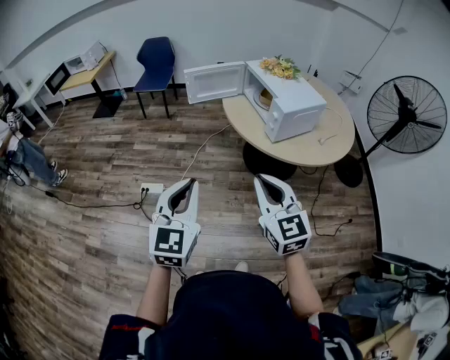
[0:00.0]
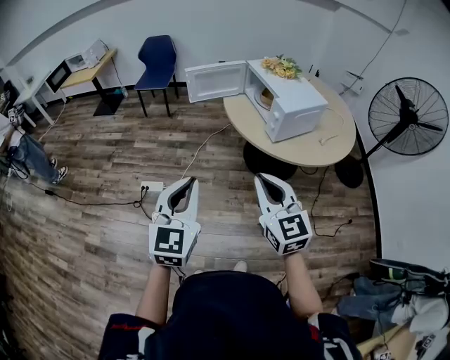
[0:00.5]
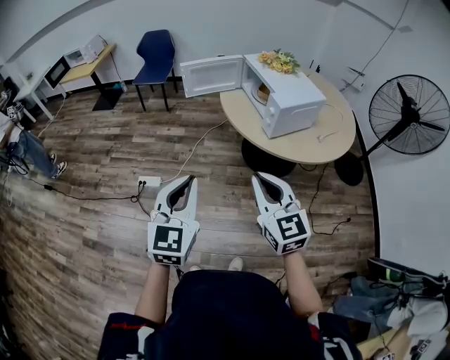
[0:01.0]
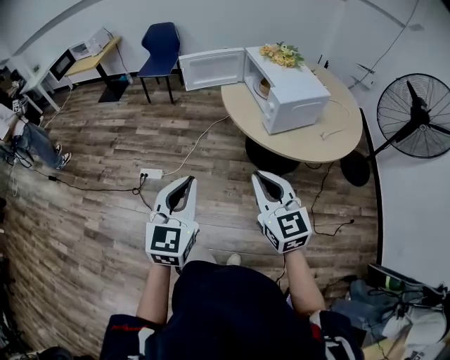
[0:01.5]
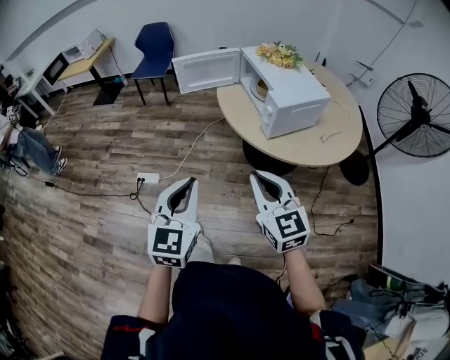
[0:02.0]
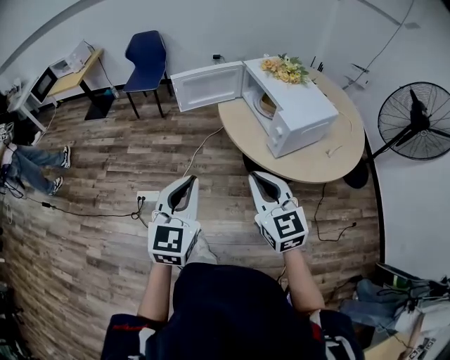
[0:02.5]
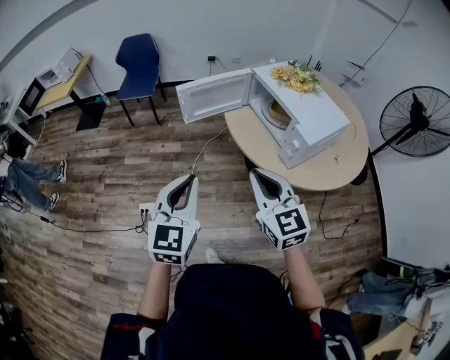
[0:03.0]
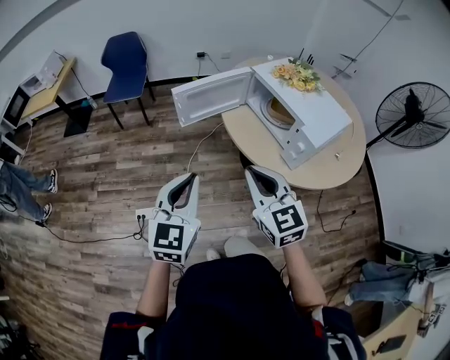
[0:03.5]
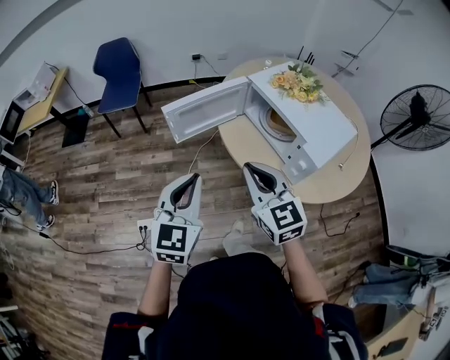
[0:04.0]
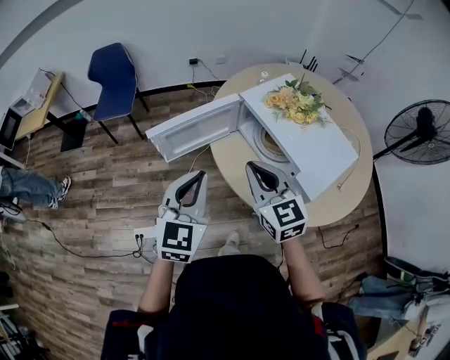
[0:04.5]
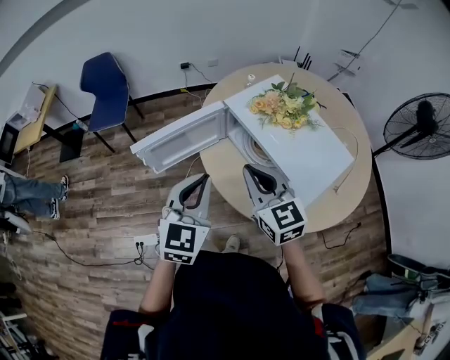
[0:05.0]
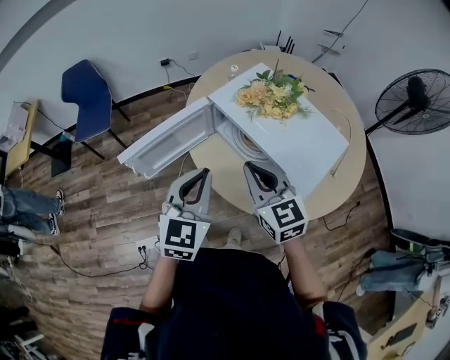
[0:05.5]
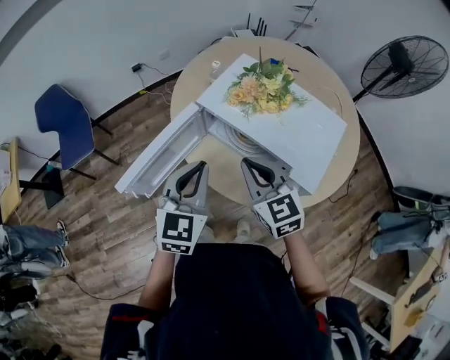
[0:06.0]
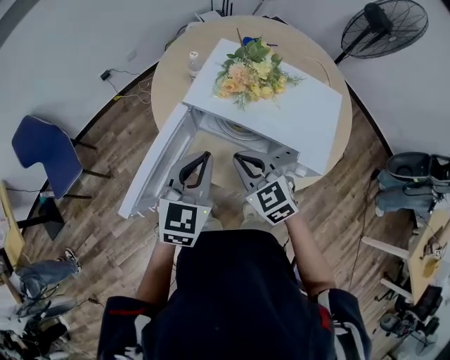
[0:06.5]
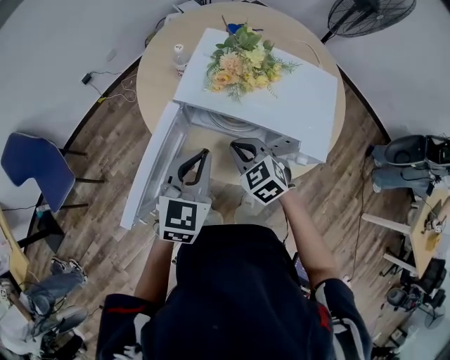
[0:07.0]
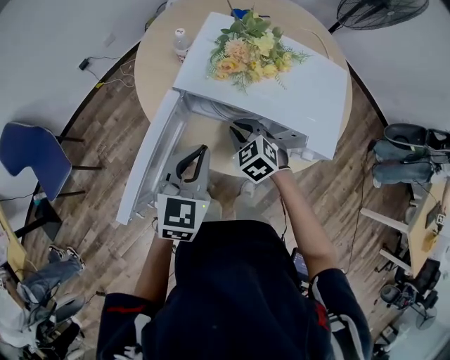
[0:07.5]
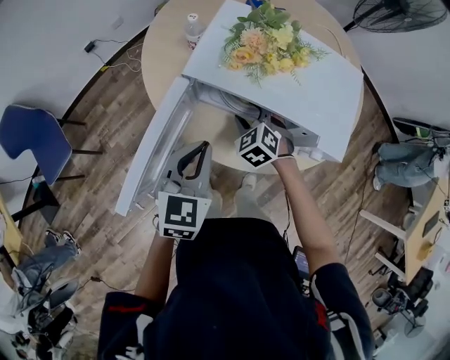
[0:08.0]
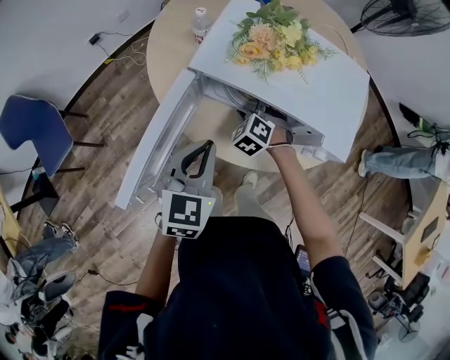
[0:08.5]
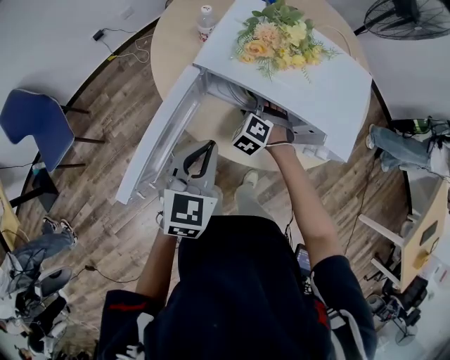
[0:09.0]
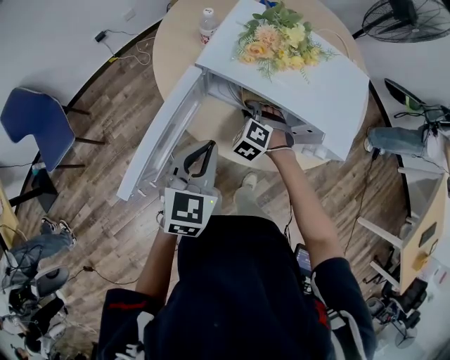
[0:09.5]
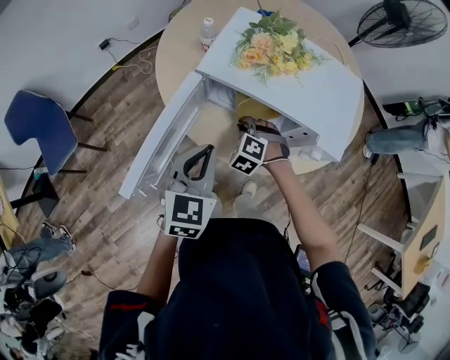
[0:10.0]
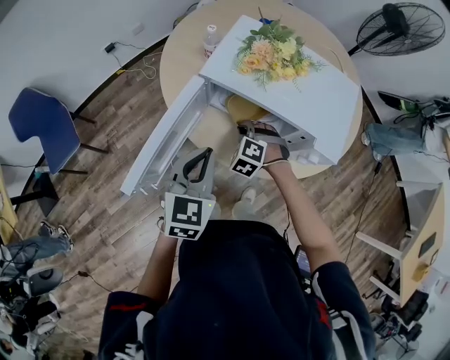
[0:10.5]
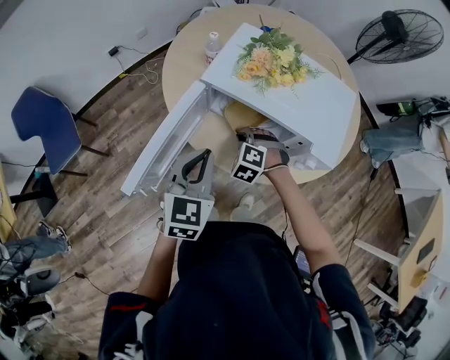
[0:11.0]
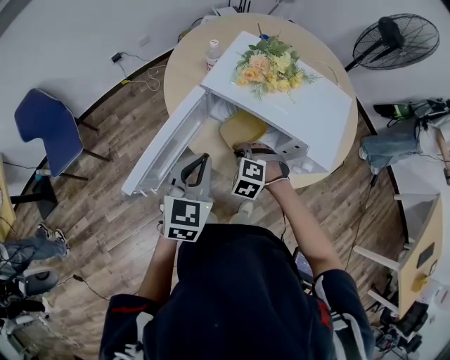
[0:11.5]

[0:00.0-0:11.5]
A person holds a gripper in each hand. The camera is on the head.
0:00.0 to 0:02.0: Both grippers travel together to the right and forward, some 10 cm.
0:02.0 to 0:04.0: The right gripper heads forward and to the left, covering approximately 35 cm, while the left gripper moves forward, about 35 cm.
0:04.0 to 0:06.0: The two grippers go about 25 cm forward and to the right. The right gripper swivels roughly 20 degrees, while the left gripper rotates approximately 20 degrees.
0:06.0 to 0:07.5: The right gripper travels downward and forward by approximately 20 cm, and changes its angle by roughly 30 degrees. The left gripper is displaced downward and forward by about 10 cm, and rotates approximately 20 degrees.
0:07.5 to 0:09.5: The right gripper moves downward, approximately 5 cm, changes its angle by roughly 30 degrees, and opens and closes again.
0:09.5 to 0:11.5: The right gripper goes some 10 cm backward.

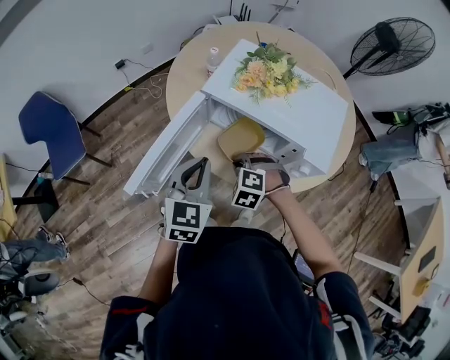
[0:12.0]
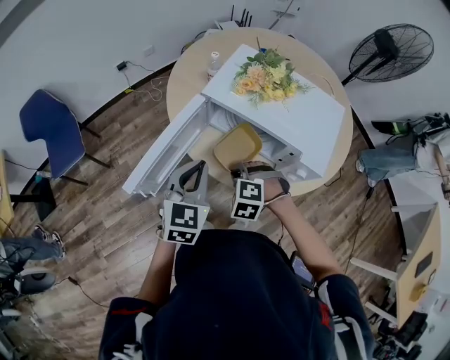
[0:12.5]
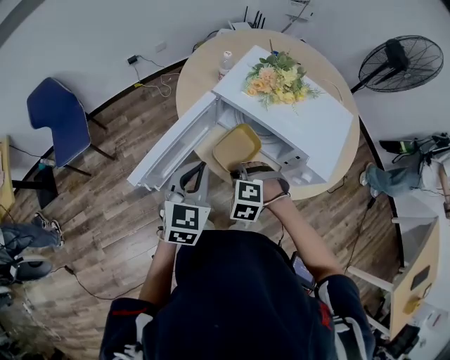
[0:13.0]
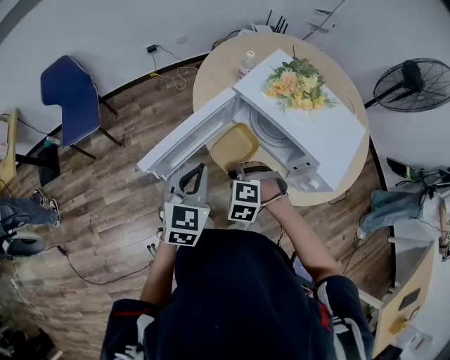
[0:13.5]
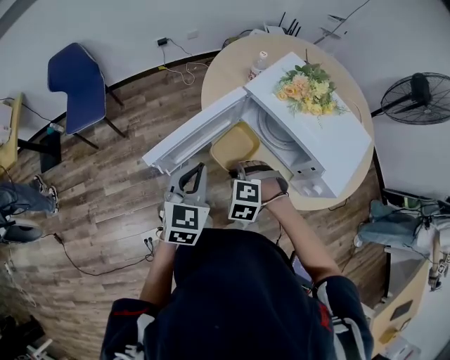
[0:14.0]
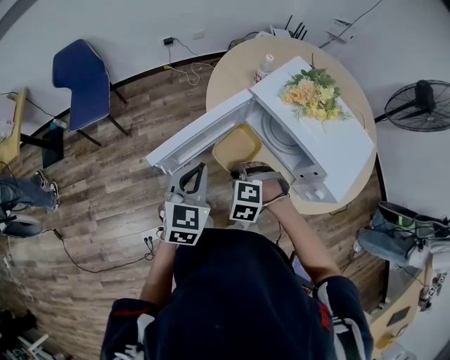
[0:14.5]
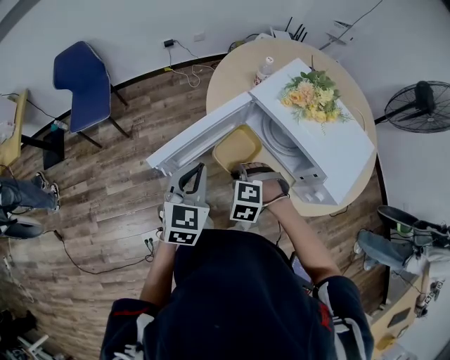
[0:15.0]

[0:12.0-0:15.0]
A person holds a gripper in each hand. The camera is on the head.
0:12.0 to 0:13.5: Both grippers travel together to the left, about 5 cm.
0:13.5 to 0:15.0: The grippers stay close to where they were, moving slightly.

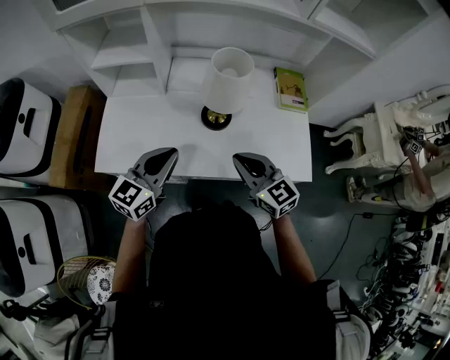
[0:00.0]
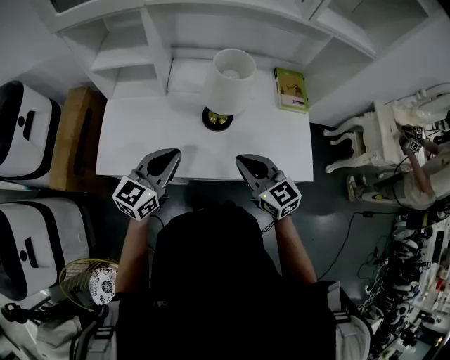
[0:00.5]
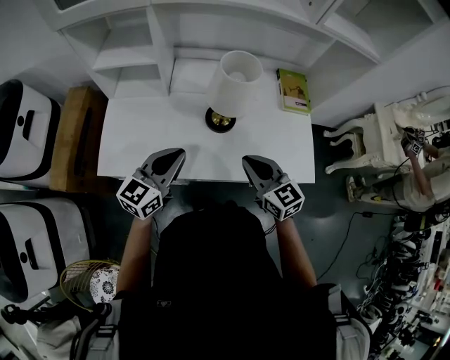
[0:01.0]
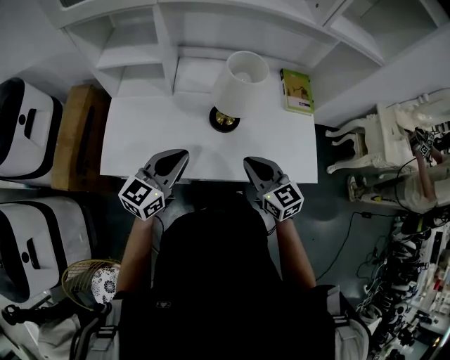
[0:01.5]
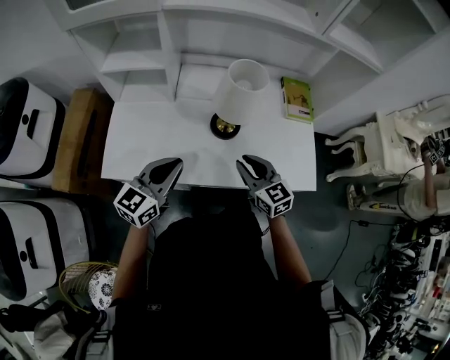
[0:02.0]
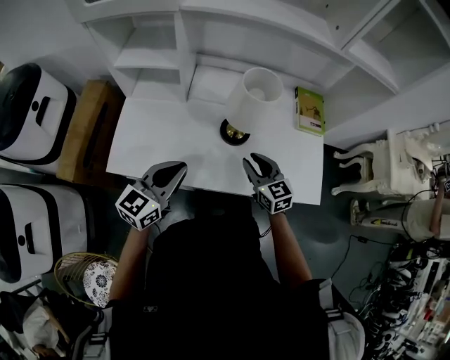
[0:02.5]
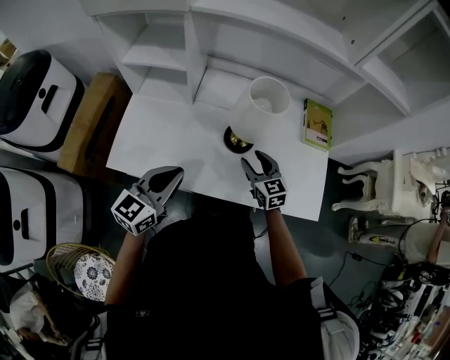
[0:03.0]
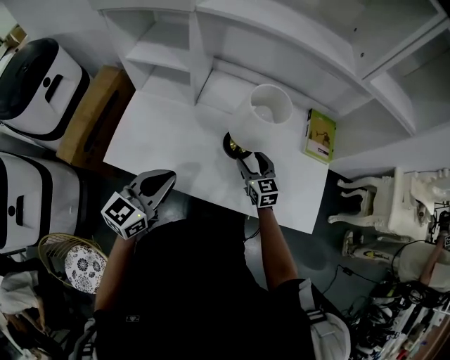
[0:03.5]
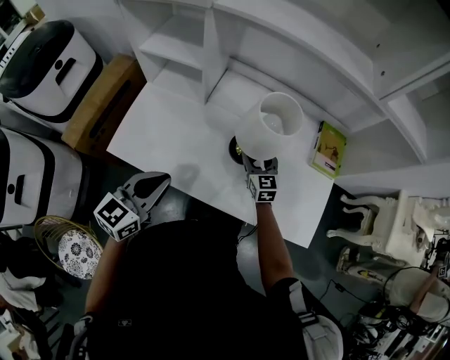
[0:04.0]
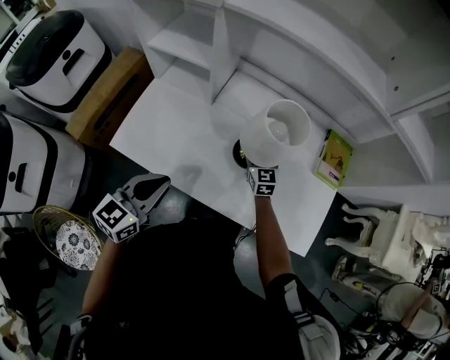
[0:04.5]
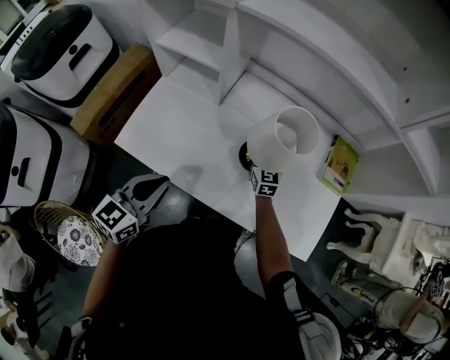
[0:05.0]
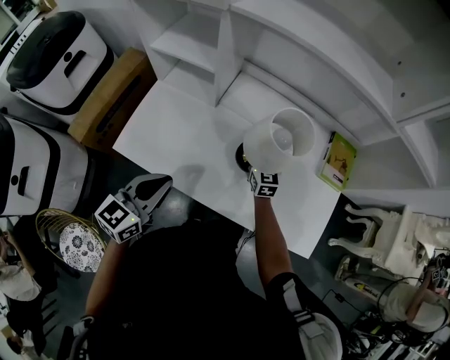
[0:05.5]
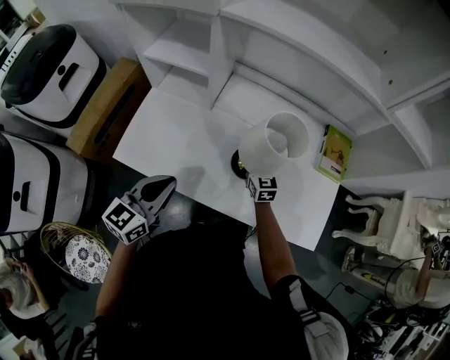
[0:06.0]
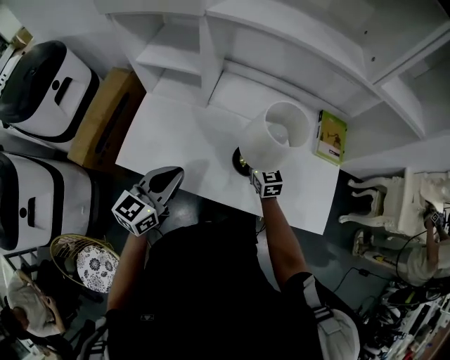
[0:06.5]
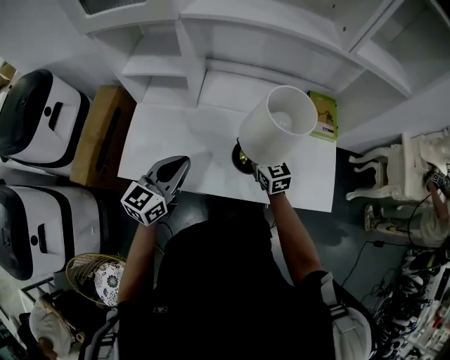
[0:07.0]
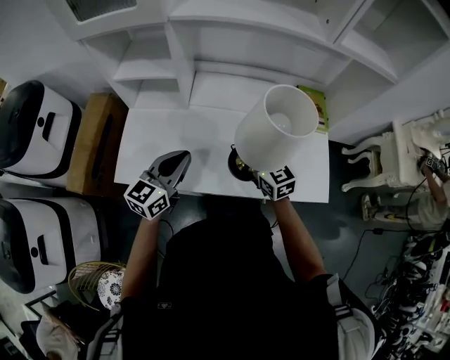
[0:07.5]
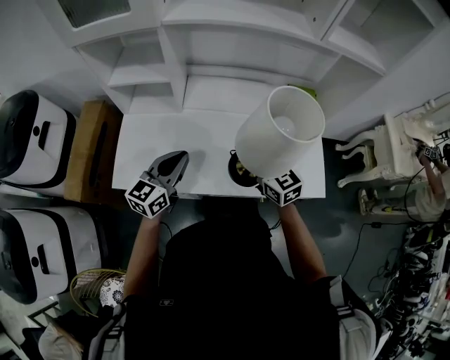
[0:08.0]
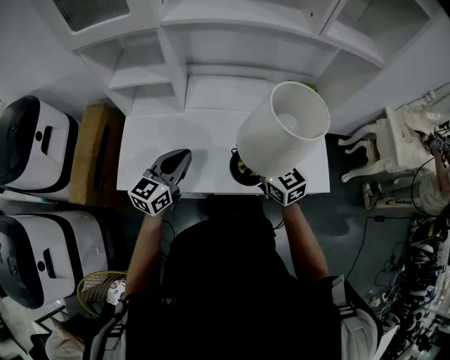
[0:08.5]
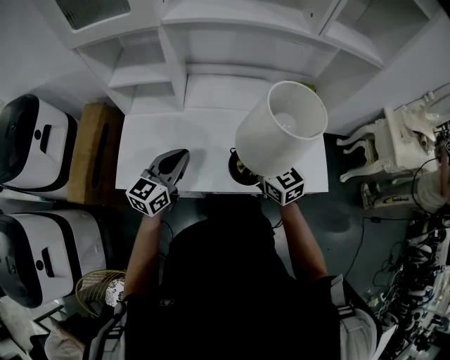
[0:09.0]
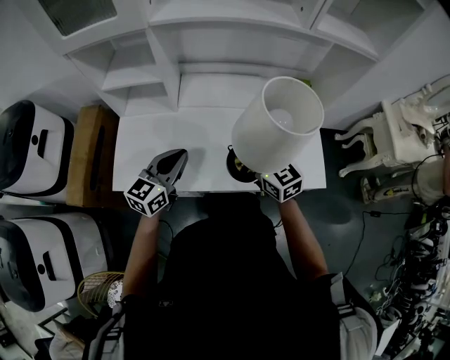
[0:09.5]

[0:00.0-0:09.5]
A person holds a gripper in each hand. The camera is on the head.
0:00.0 to 0:02.0: The right gripper shifts by some 5 cm.
0:02.0 to 0:04.0: The right gripper heads forward and downward, covering approximately 20 cm, and opens.
0:04.0 to 0:05.5: The right gripper changes place by roughly 5 cm, and closes up.
0:05.5 to 0:07.5: The right gripper travels backward and upward by approximately 20 cm; the left gripper moves roughly 5 cm.
0:07.5 to 0:09.5: The right gripper shifts by some 5 cm.

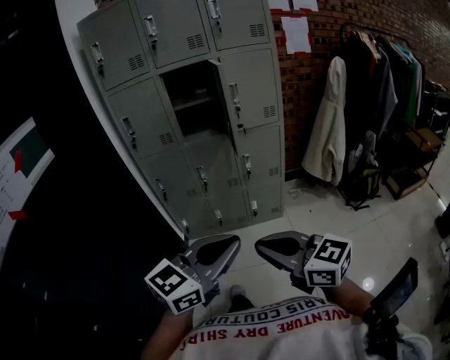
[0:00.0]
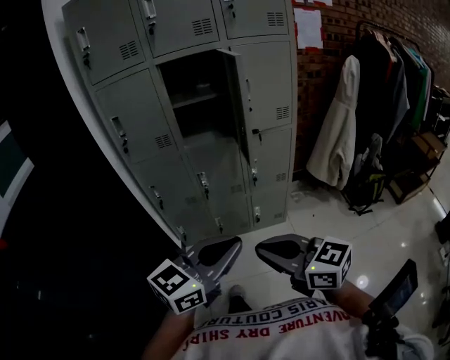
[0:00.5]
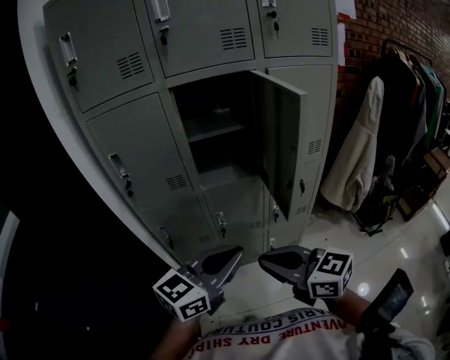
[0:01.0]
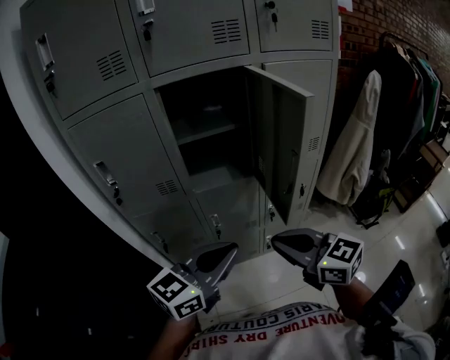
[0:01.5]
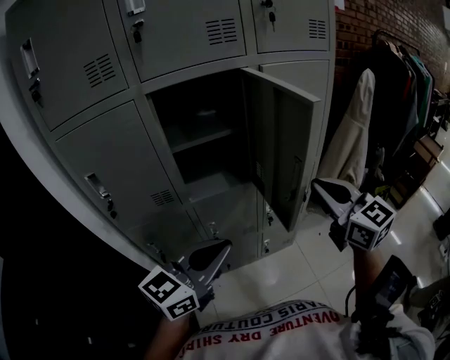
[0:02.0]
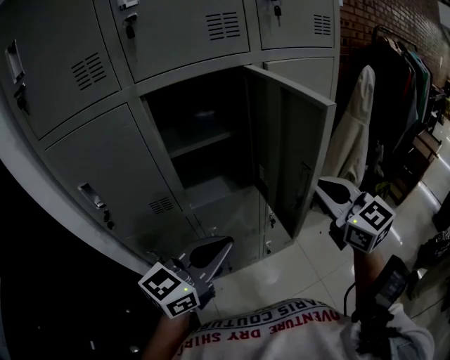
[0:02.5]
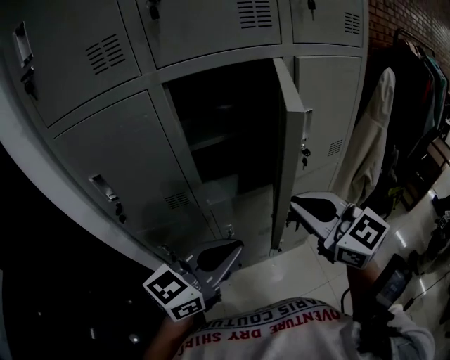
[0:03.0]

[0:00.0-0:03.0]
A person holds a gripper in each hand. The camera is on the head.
0:00.0 to 0:01.5: Both grippers are carried forward, approximately 40 cm.
0:01.5 to 0:03.0: The right gripper goes about 15 cm forward and upward. Meanwhile the left gripper shifts roughly 10 cm forward and to the left.
